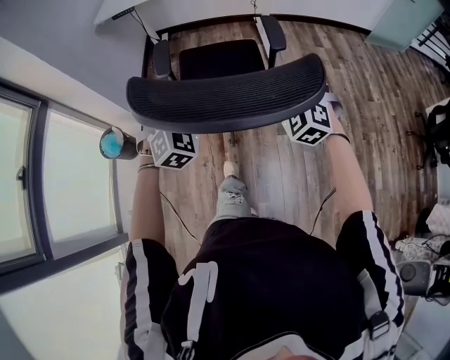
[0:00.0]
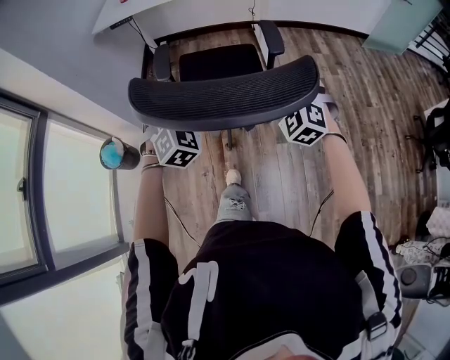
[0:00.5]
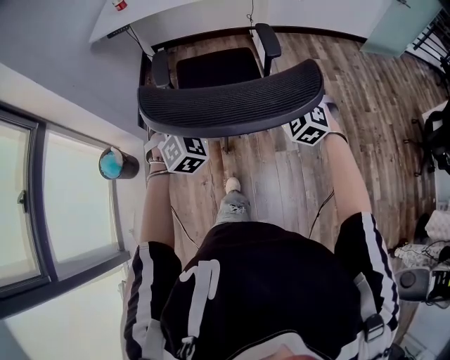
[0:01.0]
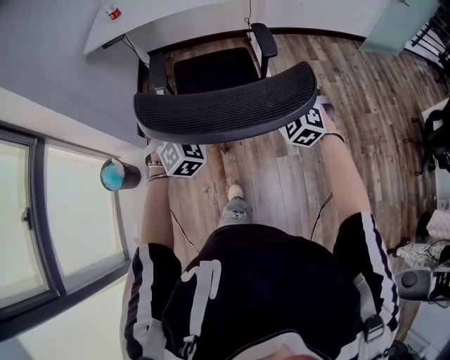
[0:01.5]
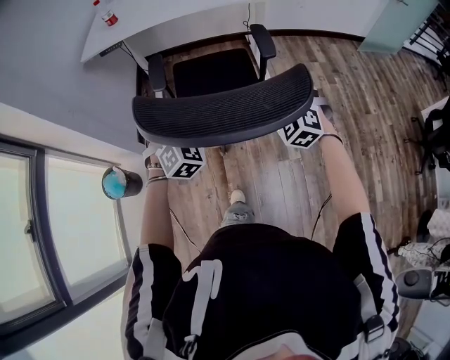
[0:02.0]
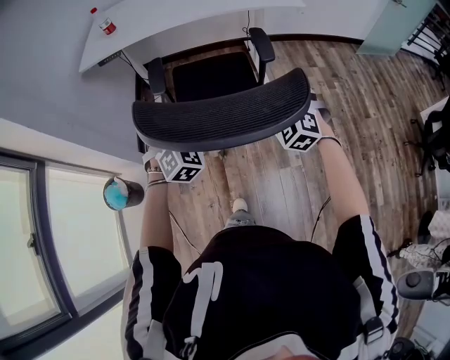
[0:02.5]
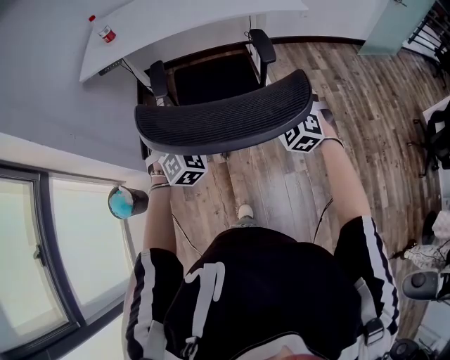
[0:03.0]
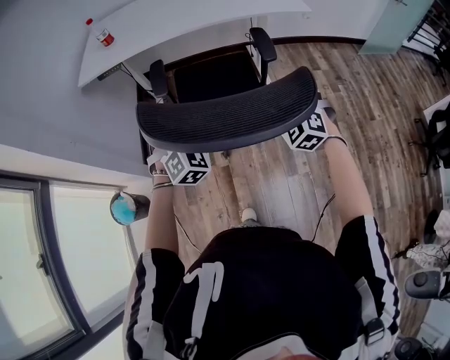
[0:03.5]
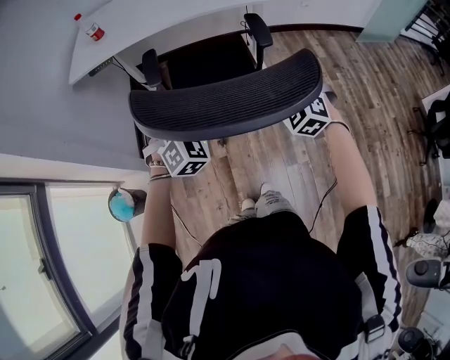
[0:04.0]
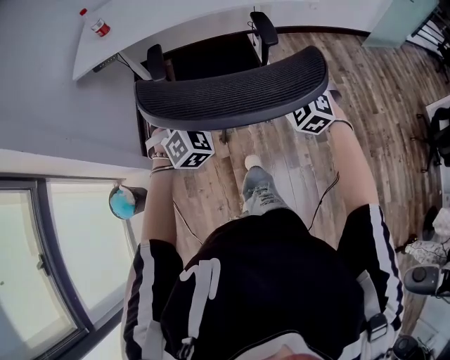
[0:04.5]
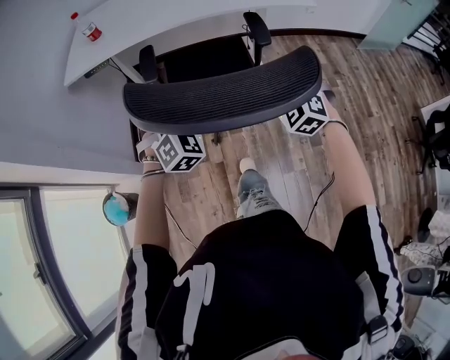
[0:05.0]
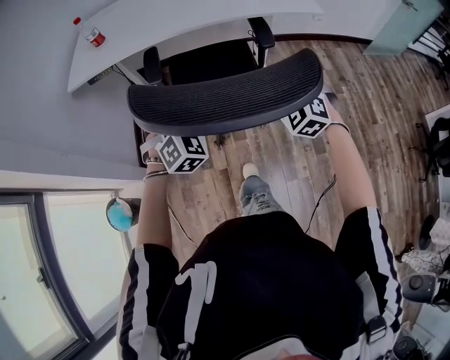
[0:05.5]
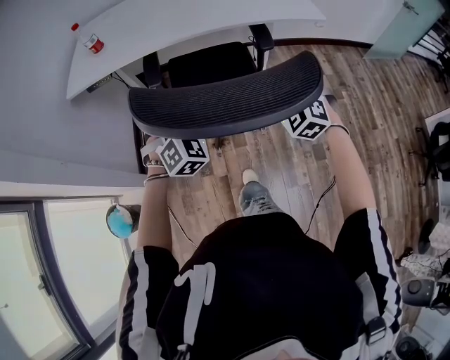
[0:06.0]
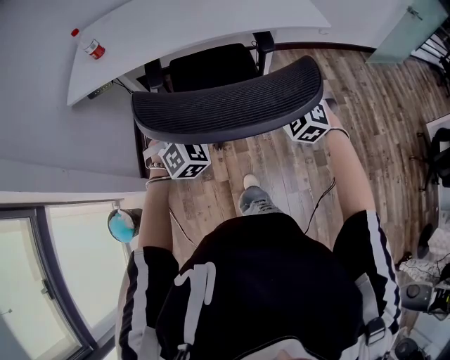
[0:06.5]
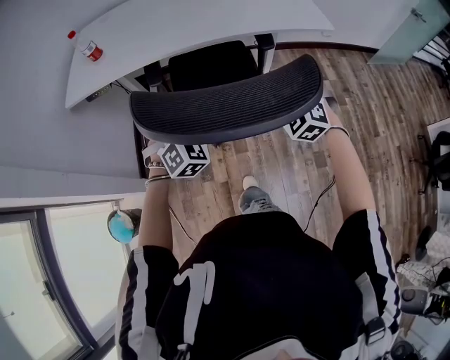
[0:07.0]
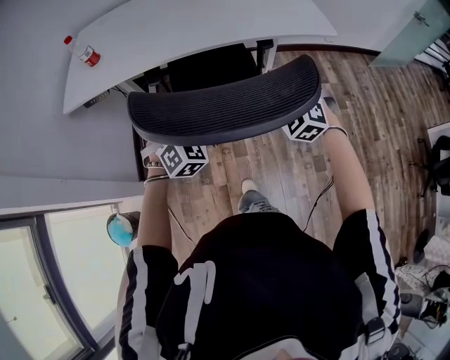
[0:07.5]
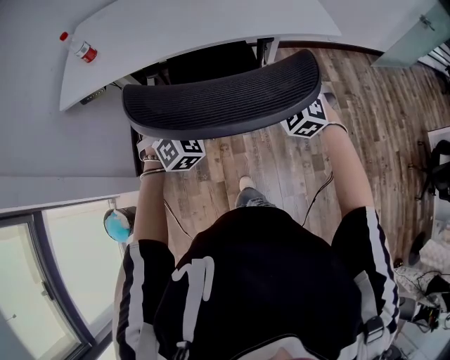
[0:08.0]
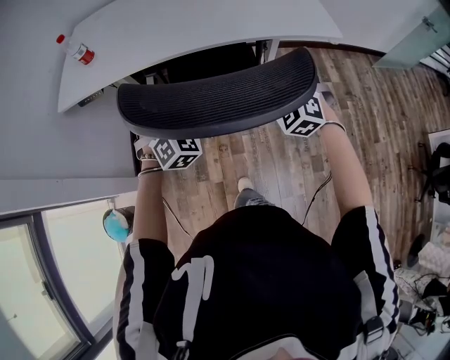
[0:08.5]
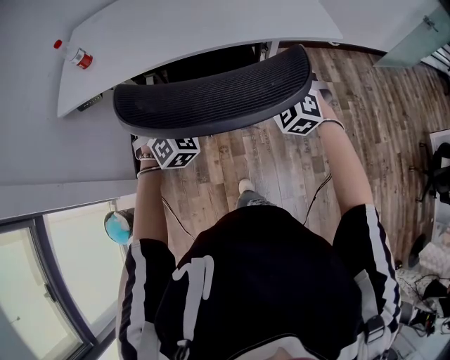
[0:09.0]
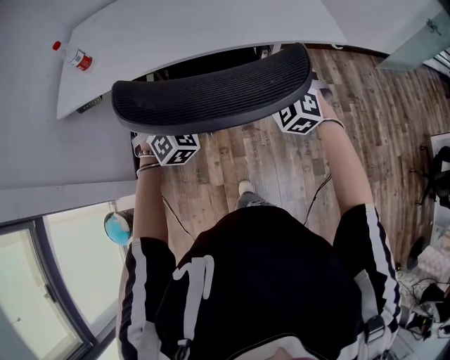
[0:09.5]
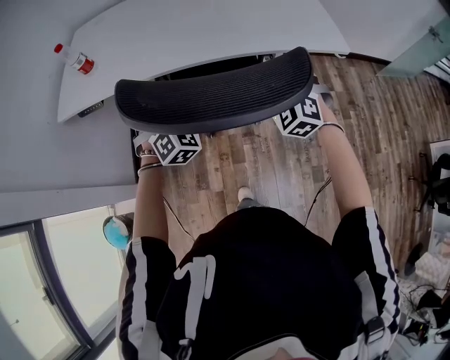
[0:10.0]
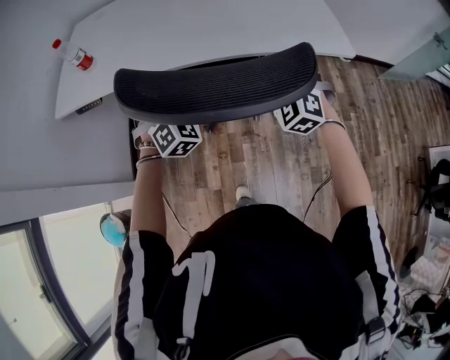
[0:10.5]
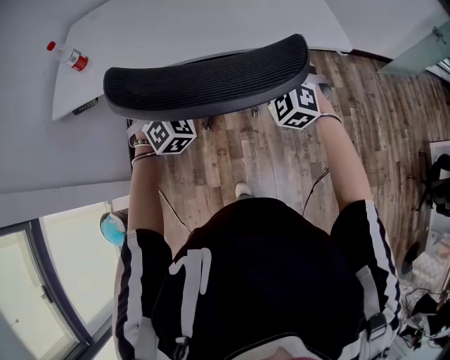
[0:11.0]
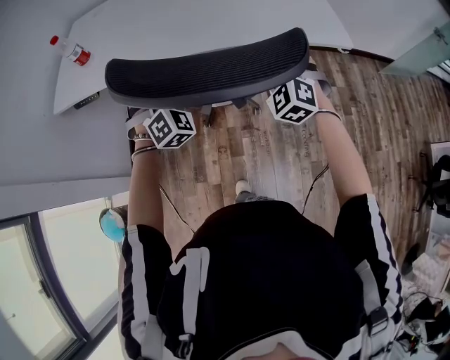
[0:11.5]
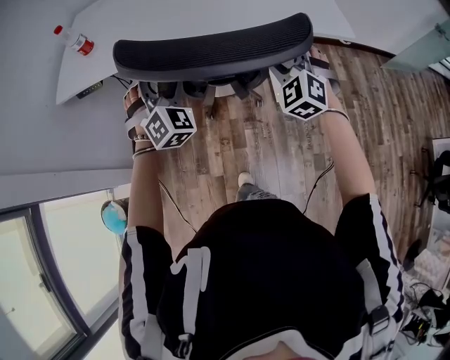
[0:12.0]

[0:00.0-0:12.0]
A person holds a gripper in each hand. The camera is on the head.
0:00.0 to 0:02.0: Both grippers travel together forward, approximately 15 cm.
0:02.0 to 0:04.0: Both grippers move forward, roughly 15 cm.
0:04.0 to 0:06.0: The two grippers go some 10 cm forward.
0:06.0 to 0:08.0: Both grippers travel together forward, about 10 cm.
0:08.0 to 0:10.0: The two grippers go approximately 10 cm forward.
0:10.0 to 0:12.0: There are only small adjustments of the grippers.

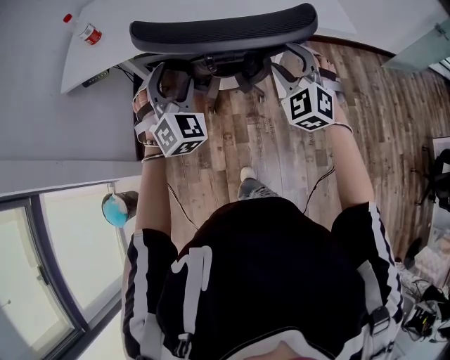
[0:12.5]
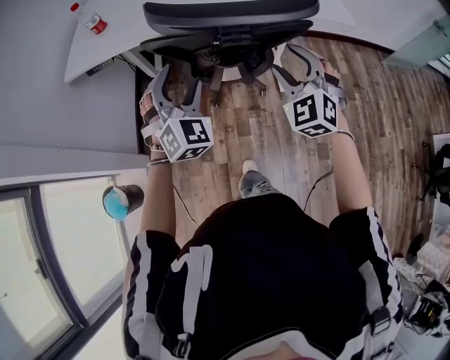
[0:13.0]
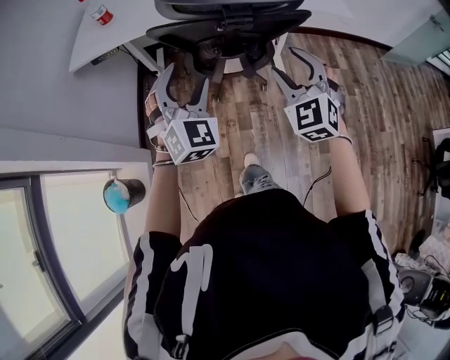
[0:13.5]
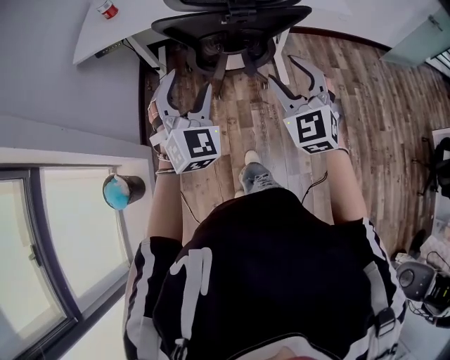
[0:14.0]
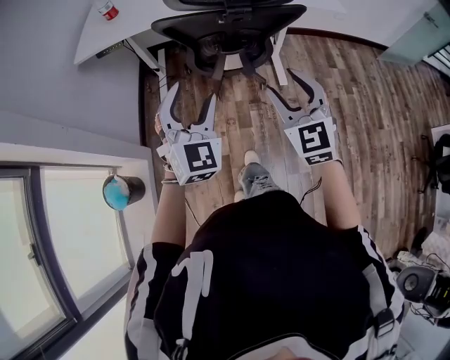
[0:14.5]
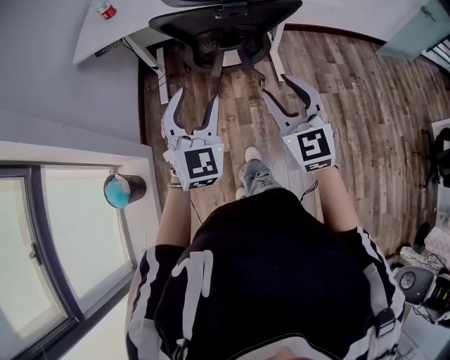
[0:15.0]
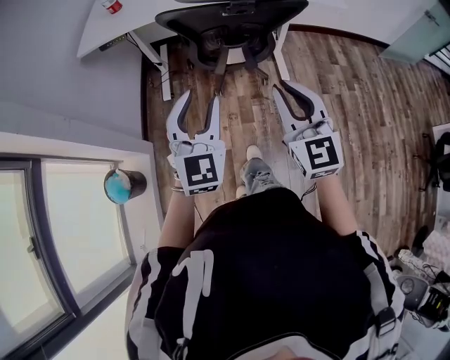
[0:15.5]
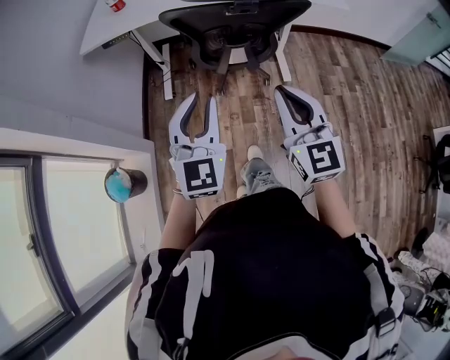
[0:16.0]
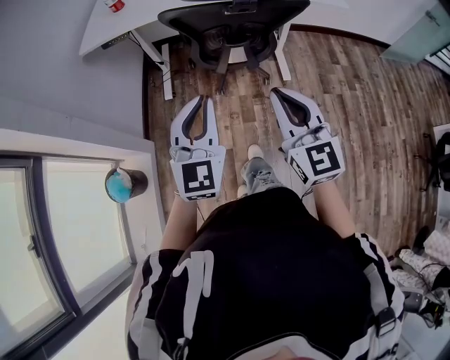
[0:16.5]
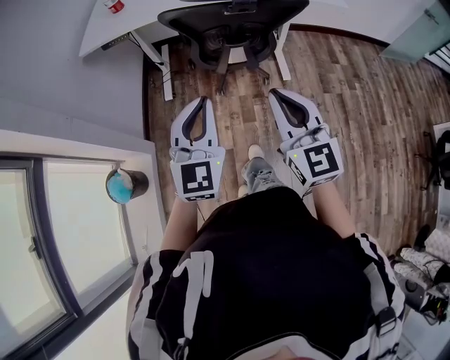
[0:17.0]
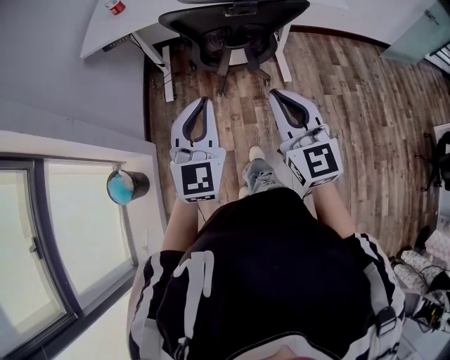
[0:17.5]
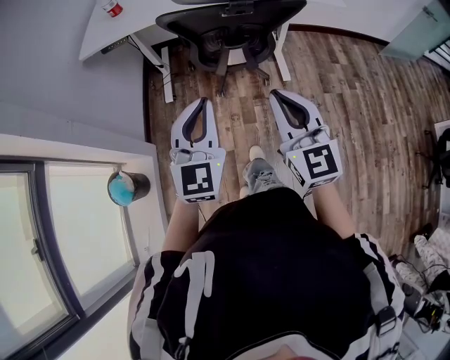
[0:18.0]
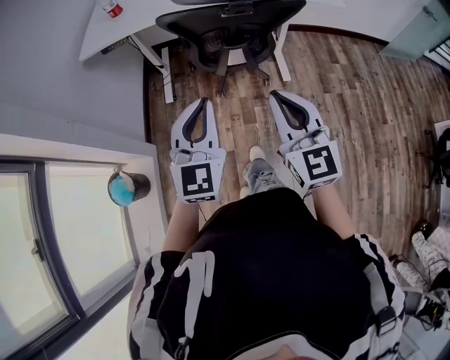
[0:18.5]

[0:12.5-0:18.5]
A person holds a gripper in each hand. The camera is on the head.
0:12.5 to 0:14.5: Both grippers travel together backward, roughly 20 cm. The left gripper turns by roughly 20 degrees; the right gripper rotates some 30 degrees.
0:14.5 to 0:16.5: The two grippers go approximately 5 cm backward. The right gripper swivels some 20 degrees, and closes its fingers. Meanwhile the left gripper swivels about 20 degrees, and closes its fingers.
0:16.5 to 0:18.5: Both grippers stay about where they are.

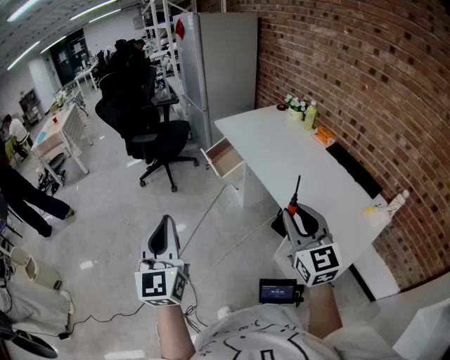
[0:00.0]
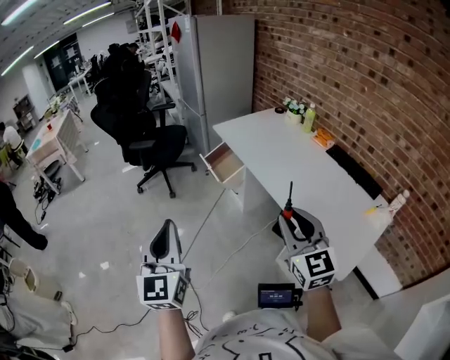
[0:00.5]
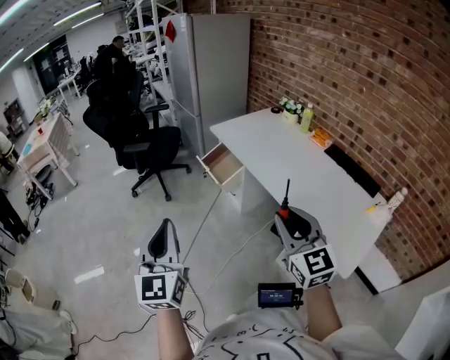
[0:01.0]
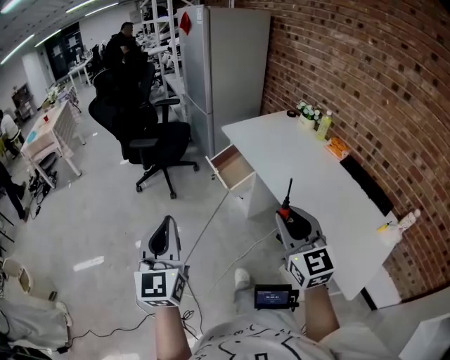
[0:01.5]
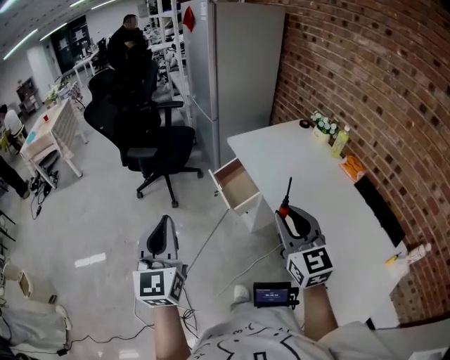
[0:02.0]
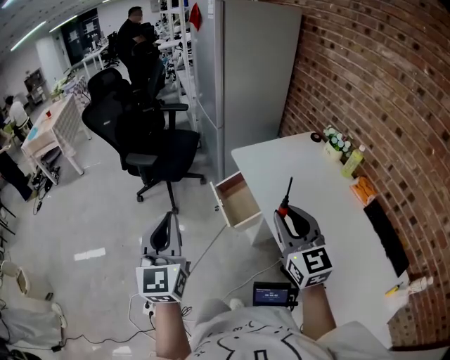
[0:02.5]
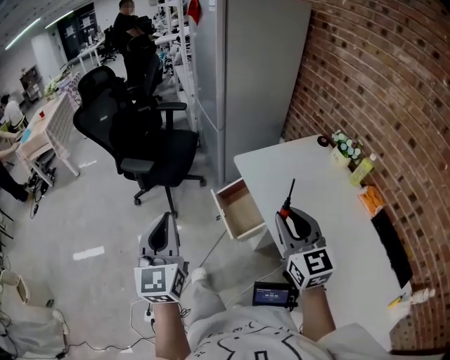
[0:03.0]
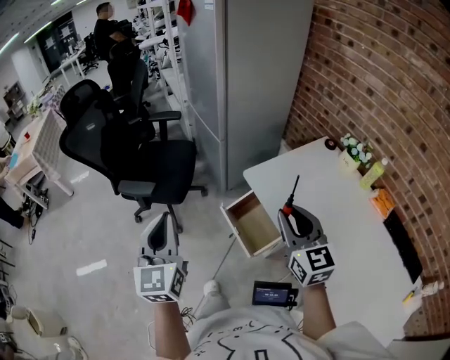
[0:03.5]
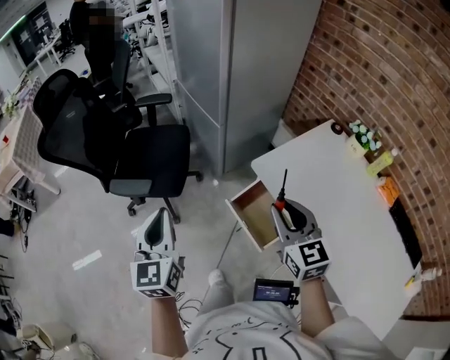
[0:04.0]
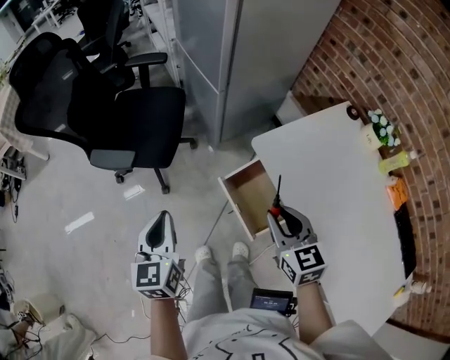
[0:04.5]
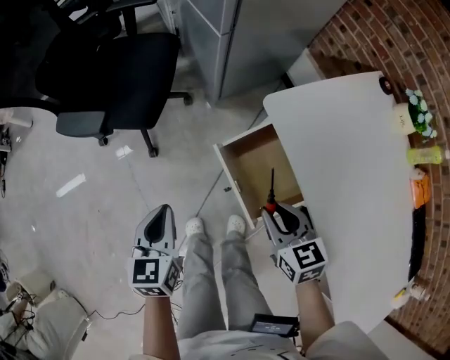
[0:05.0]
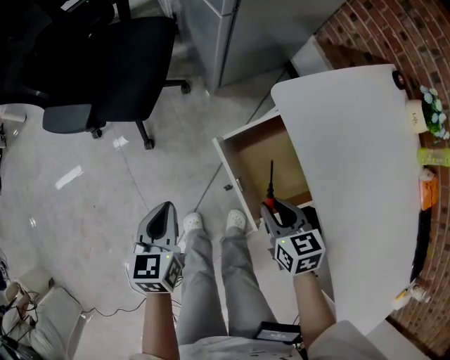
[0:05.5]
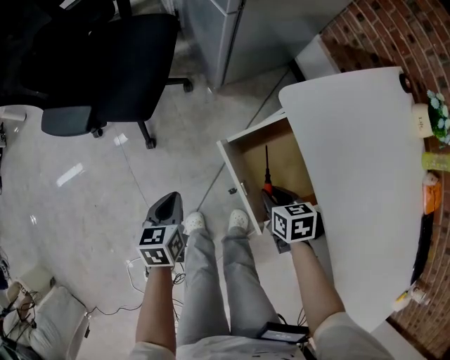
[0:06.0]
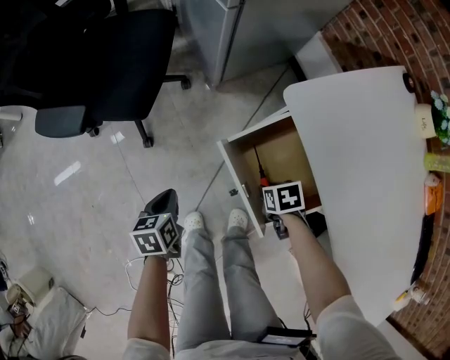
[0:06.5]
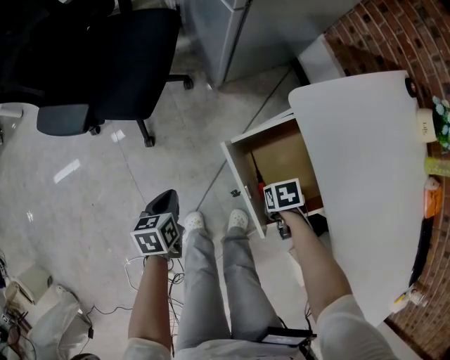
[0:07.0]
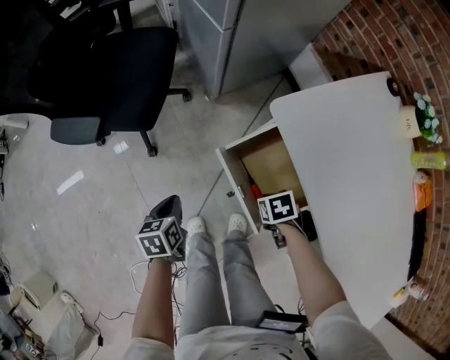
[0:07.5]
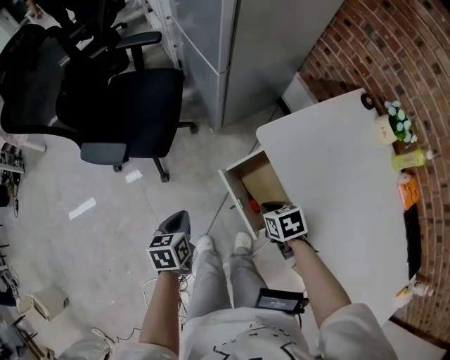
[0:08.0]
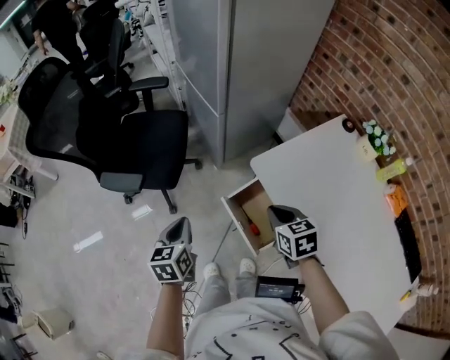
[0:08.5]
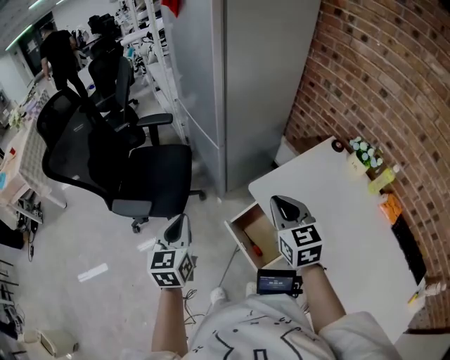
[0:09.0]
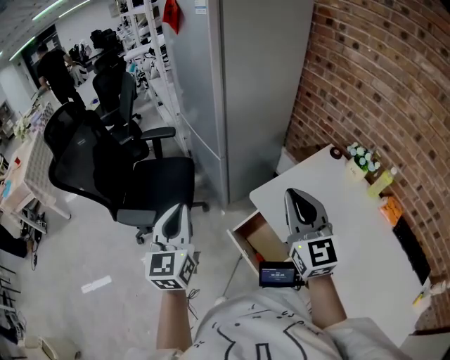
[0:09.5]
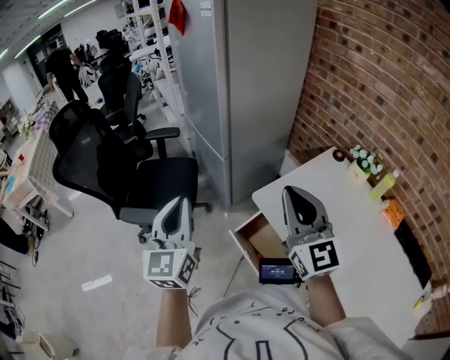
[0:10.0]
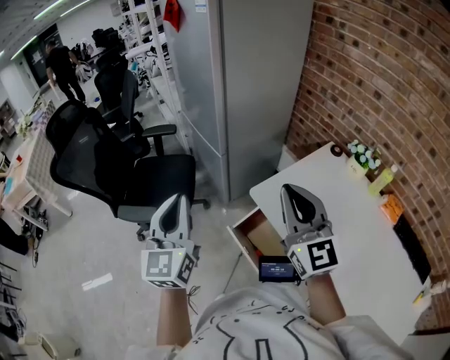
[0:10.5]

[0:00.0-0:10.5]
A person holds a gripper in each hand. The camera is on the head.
0:00.0 to 0:02.0: The two grippers go approximately 30 cm forward.
0:02.0 to 0:04.0: The pair of grippers is taken forward, some 40 cm.
0:04.0 to 0:06.5: Both grippers travel together downward, approximately 50 cm. The right gripper tilts its fingers approximately 60 degrees downward. The left gripper tips its fingers downward by roughly 40 degrees.
0:06.5 to 0:08.5: The two grippers go approximately 35 cm upward. The left gripper rotates approximately 20 degrees. Meanwhile the right gripper points its fingers roughly 30 degrees further upward.
0:08.5 to 0:10.5: Both grippers travel together upward, roughly 30 cm. The right gripper angles its fingers upward, by roughly 50 degrees. The left gripper angles its fingers upward, by some 40 degrees.
